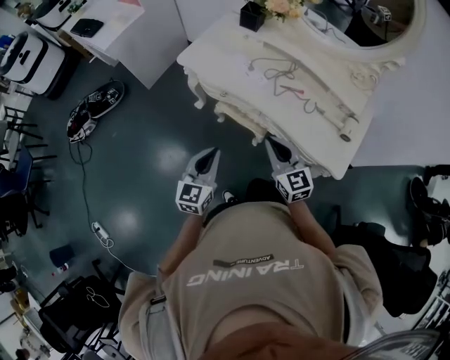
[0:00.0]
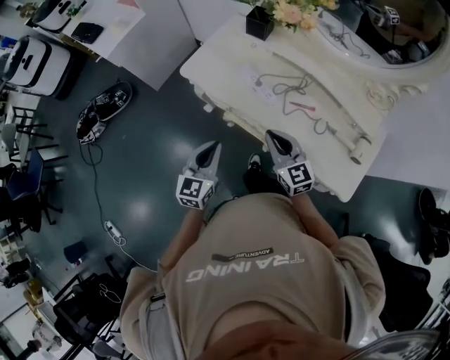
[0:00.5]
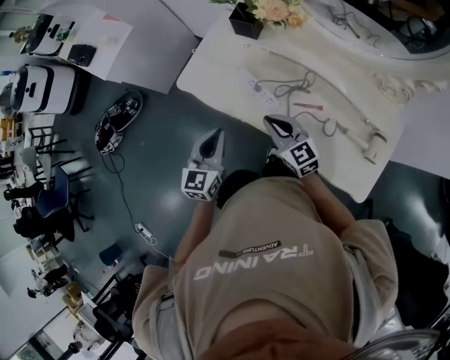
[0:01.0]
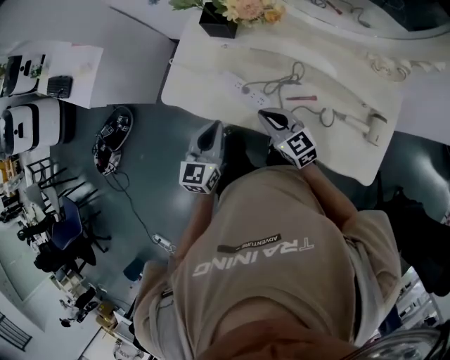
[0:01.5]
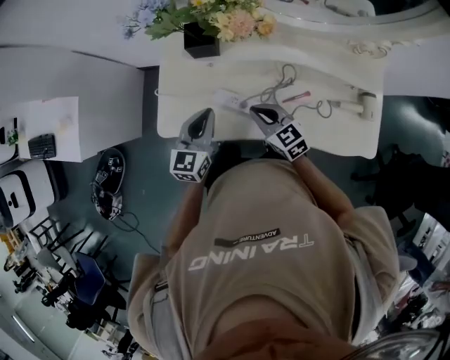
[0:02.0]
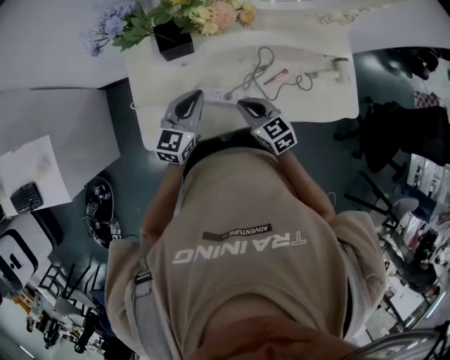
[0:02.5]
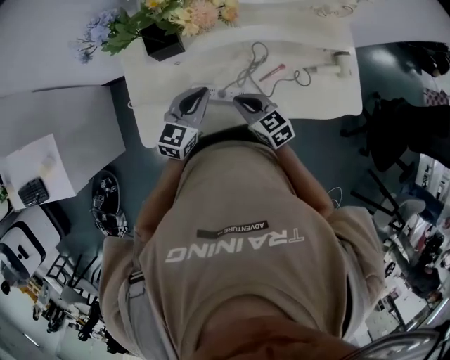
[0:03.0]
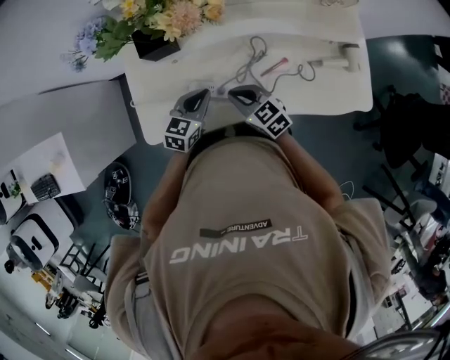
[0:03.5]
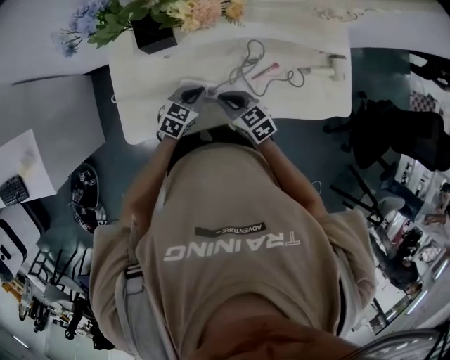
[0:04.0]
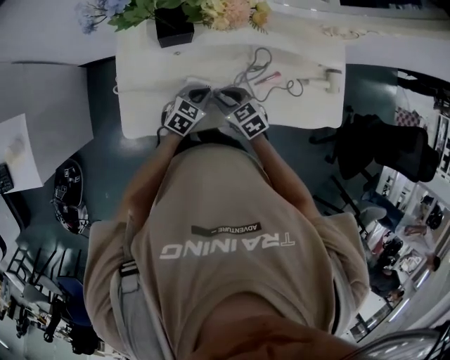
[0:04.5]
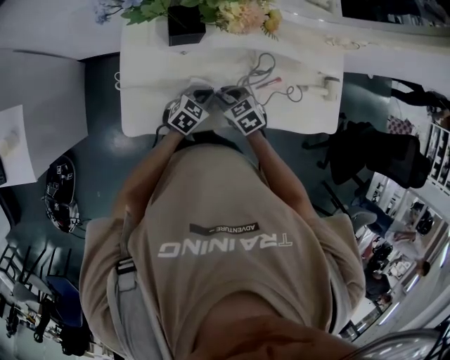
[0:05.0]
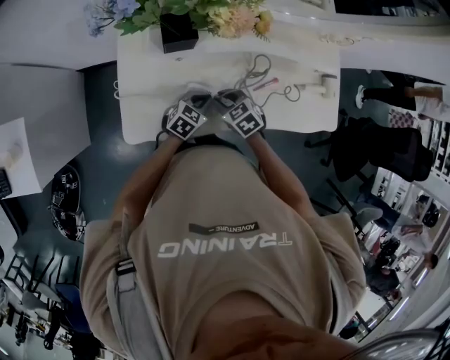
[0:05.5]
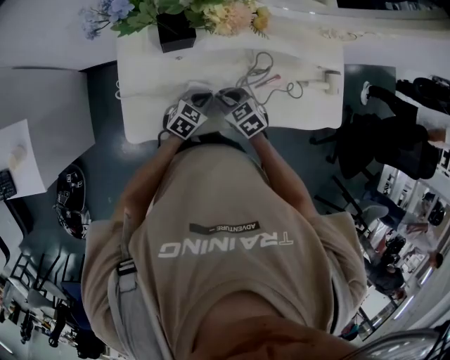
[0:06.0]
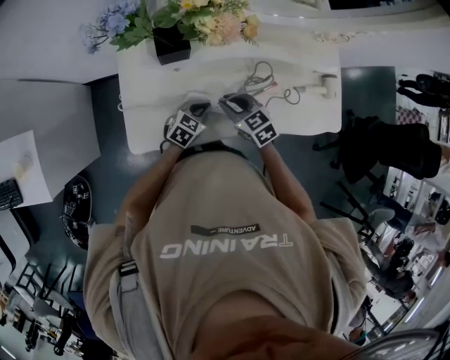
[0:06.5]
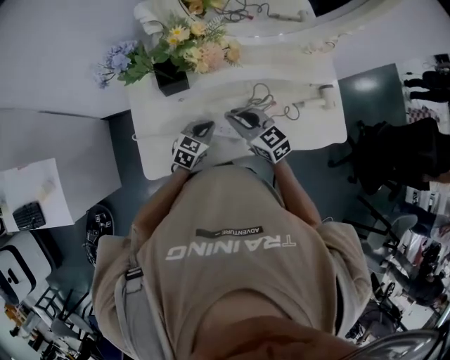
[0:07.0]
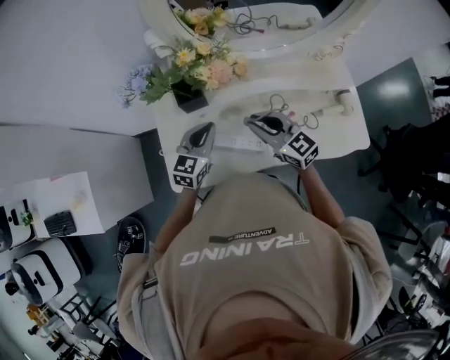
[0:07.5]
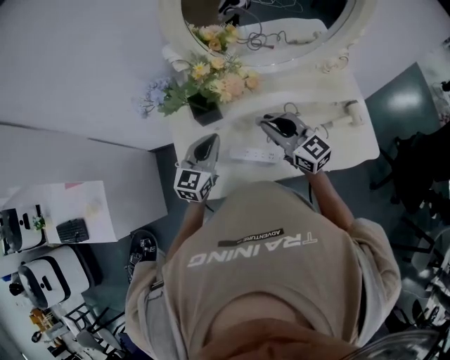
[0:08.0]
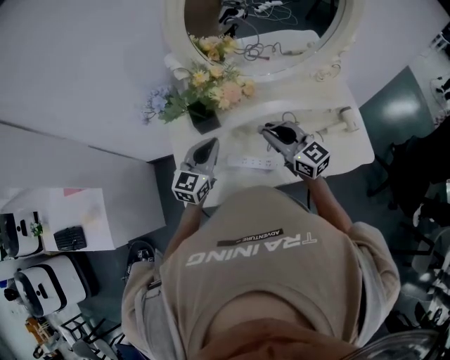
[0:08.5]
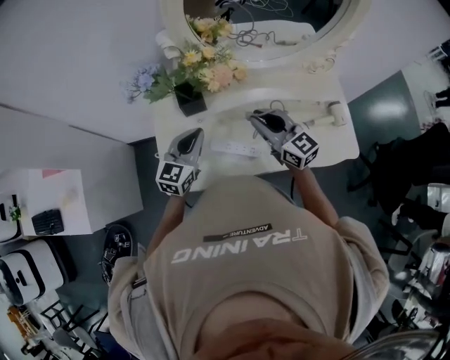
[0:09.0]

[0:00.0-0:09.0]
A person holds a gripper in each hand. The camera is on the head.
0:00.0 to 0:02.0: Both grippers travel together forward, some 40 cm. The left gripper swivels approximately 30 degrees. Meanwhile the right gripper turns by about 20 degrees.
0:02.0 to 0:04.5: The right gripper moves downward, about 10 cm, rotates about 20 degrees, and opens. Meanwhile the left gripper moves downward, about 15 cm, and rotates roughly 40 degrees.
0:04.5 to 0:07.0: The right gripper moves upward, about 15 cm, and turns by approximately 20 degrees. The left gripper travels upward by roughly 5 cm.
0:07.0 to 0:09.0: The left gripper moves upward and to the left, some 20 cm, and rotates roughly 30 degrees. The right gripper moves upward, about 10 cm, and rotates about 20 degrees.

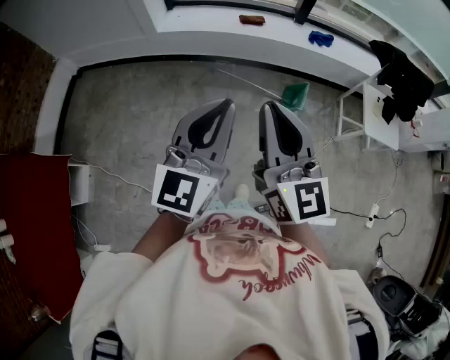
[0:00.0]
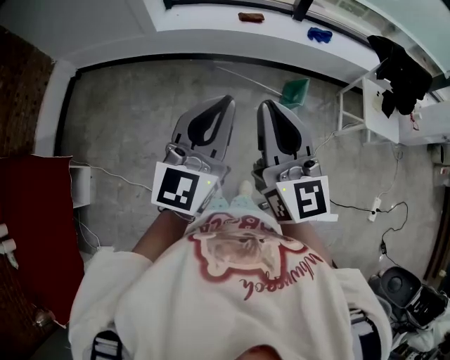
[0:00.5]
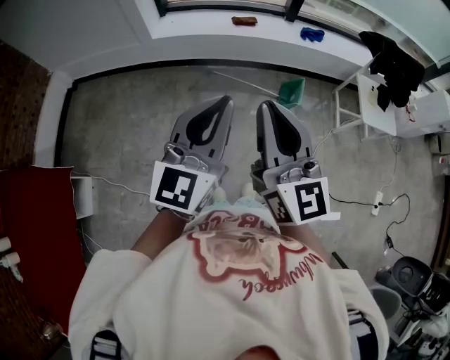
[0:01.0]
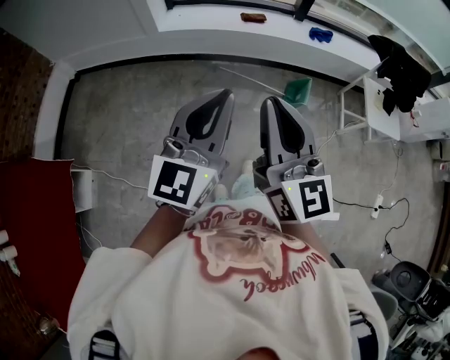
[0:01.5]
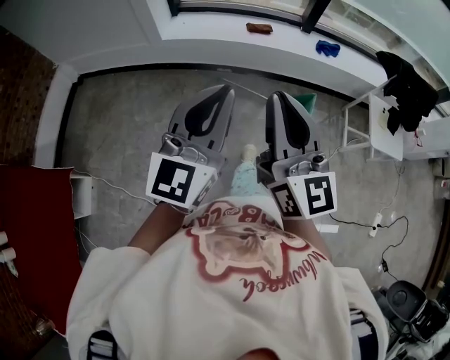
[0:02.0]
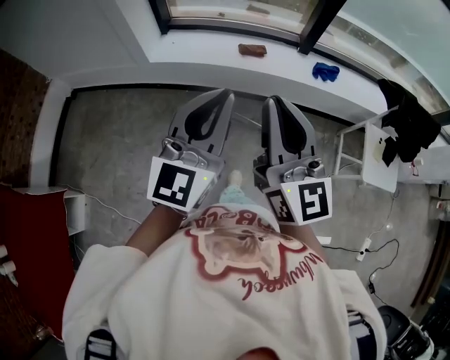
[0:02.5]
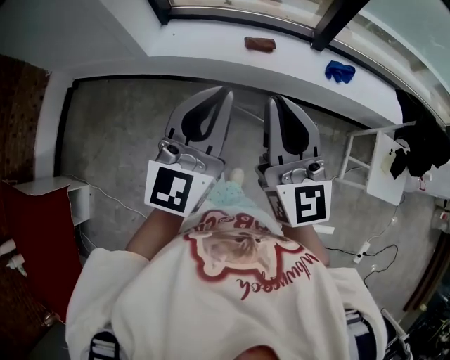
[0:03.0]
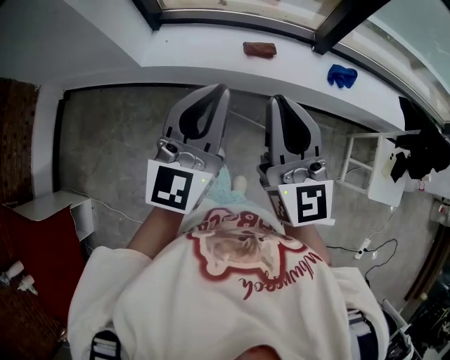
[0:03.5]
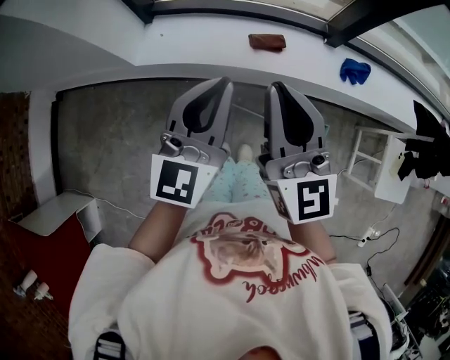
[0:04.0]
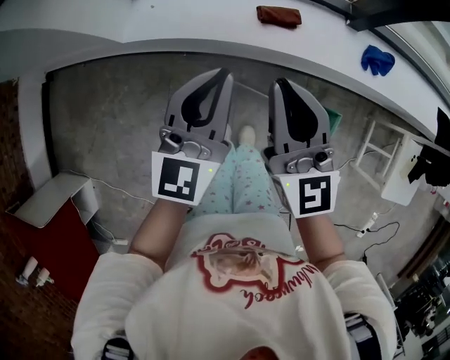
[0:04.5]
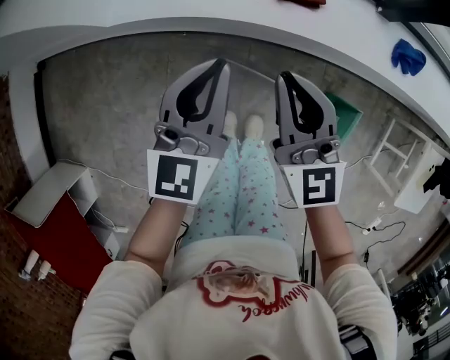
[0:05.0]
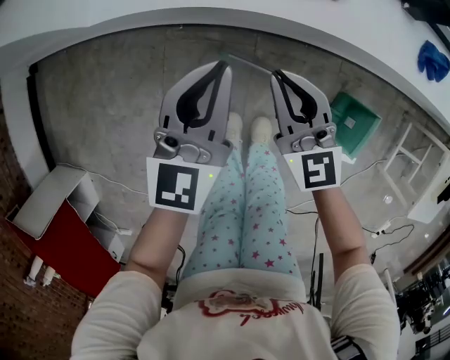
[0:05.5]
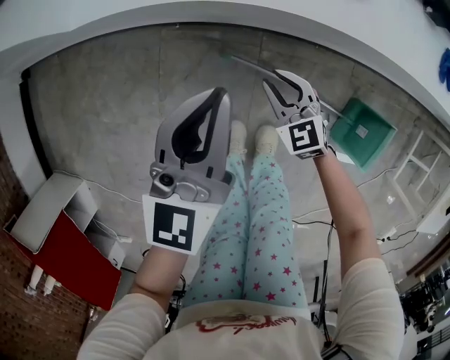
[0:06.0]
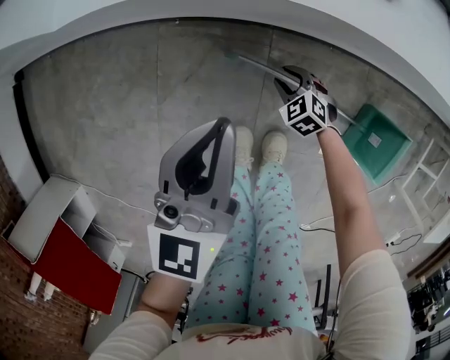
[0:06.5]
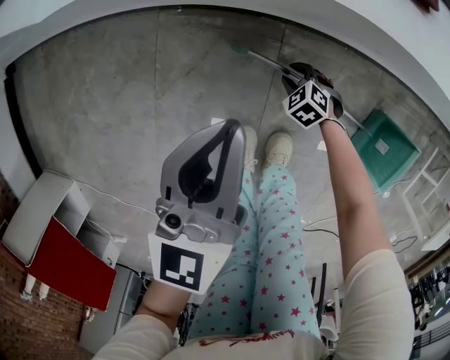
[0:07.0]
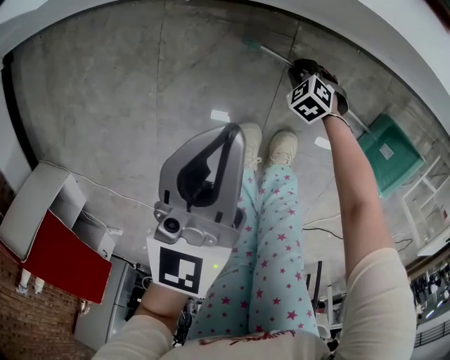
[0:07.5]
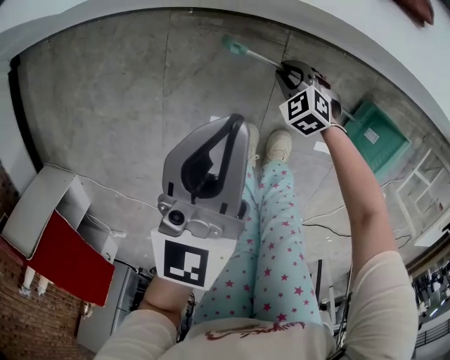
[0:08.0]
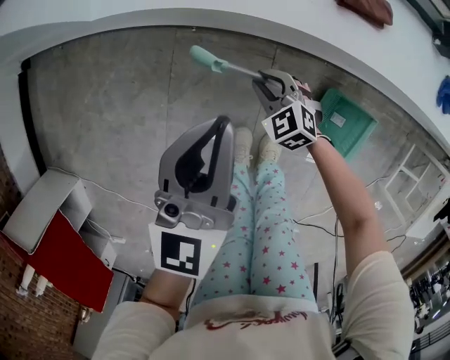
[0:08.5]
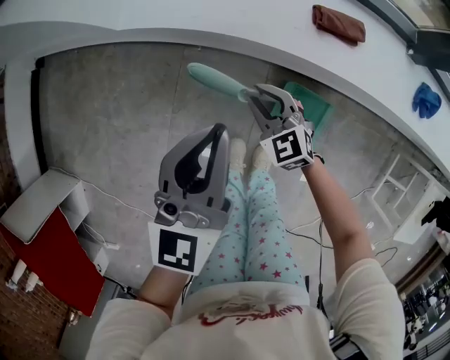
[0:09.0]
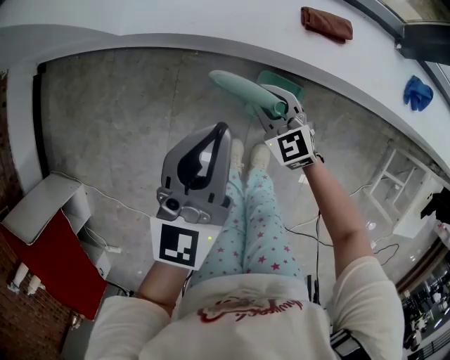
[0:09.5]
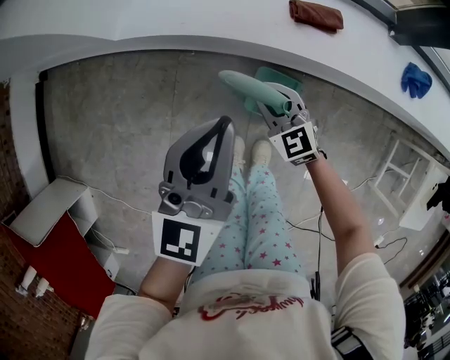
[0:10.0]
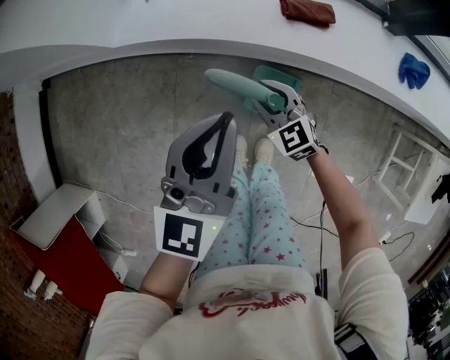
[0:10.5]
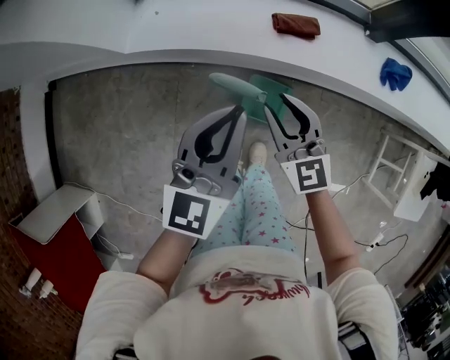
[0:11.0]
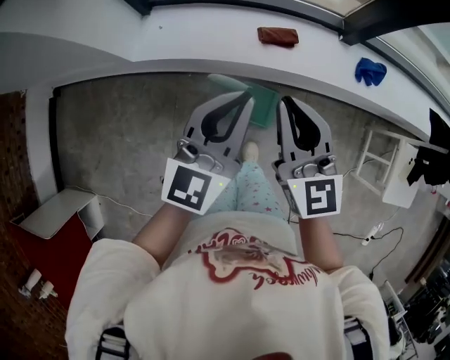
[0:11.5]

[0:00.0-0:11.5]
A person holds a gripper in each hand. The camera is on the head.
0:00.0 to 0:02.0: The grippers both shift to the left and forward by roughly 10 cm.
0:02.0 to 0:04.0: Both grippers are carried forward, roughly 50 cm.
0:04.0 to 0:06.0: The right gripper is displaced downward by about 70 cm, and points its fingers about 40 degrees further downward; the left gripper is displaced downward by approximately 40 cm.
0:06.0 to 0:07.5: The right gripper shifts some 30 cm downward, and tips its fingers downward by about 40 degrees. Meanwhile the left gripper shifts roughly 15 cm downward and to the left.
0:07.5 to 0:09.5: The right gripper is displaced upward by roughly 50 cm, and tips its fingers upward by about 40 degrees. Meanwhile the left gripper is displaced upward by roughly 30 cm.
0:09.5 to 0:11.5: The left gripper travels upward and to the right by some 20 cm. Meanwhile the right gripper travels upward by some 40 cm, and turns by some 40 degrees.

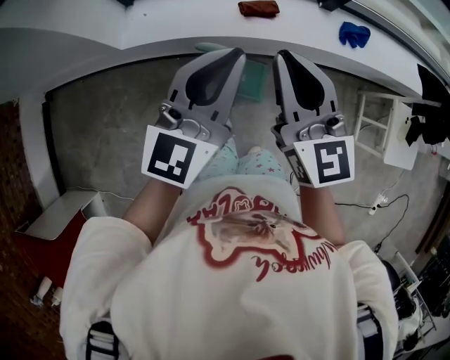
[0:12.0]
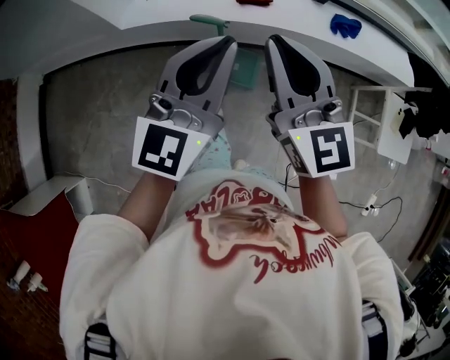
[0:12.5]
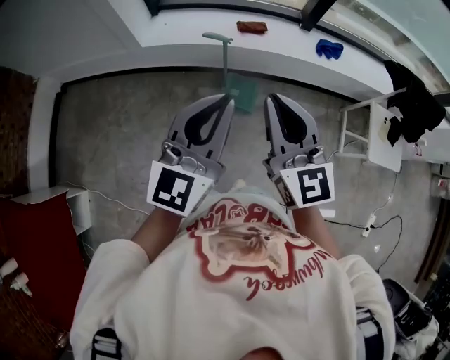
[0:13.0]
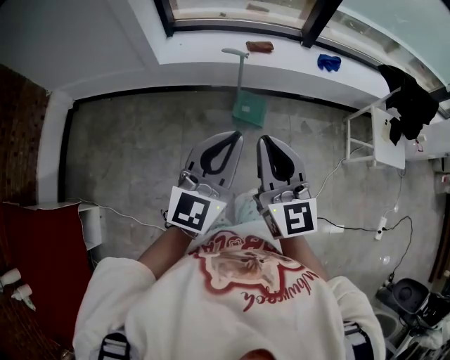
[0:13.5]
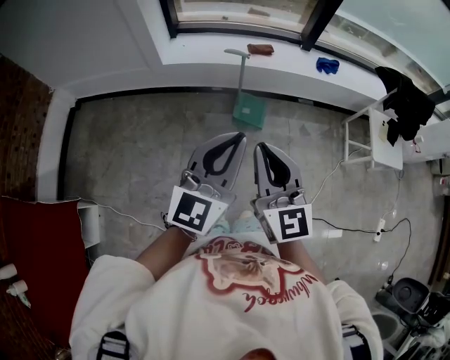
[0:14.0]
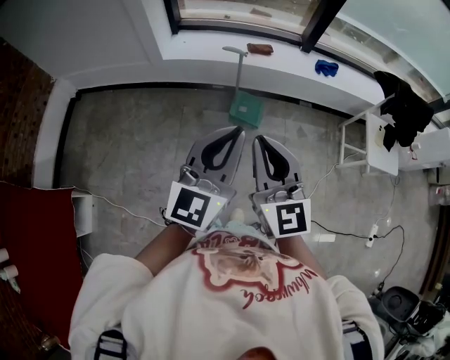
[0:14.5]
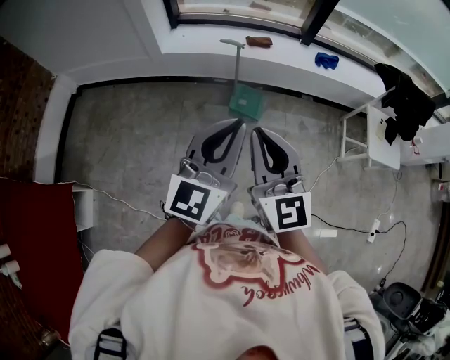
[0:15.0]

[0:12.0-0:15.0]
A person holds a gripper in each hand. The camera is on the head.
0:12.0 to 0:13.5: The pair of grippers is taken backward, about 50 cm.
0:13.5 to 0:15.0: Both grippers travel together backward, roughly 5 cm.

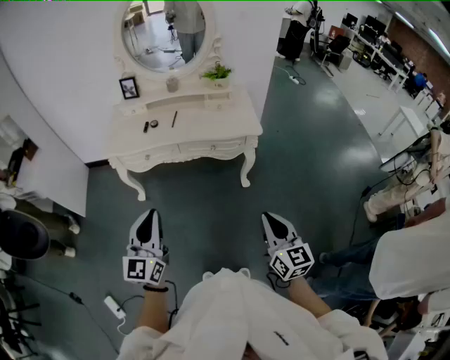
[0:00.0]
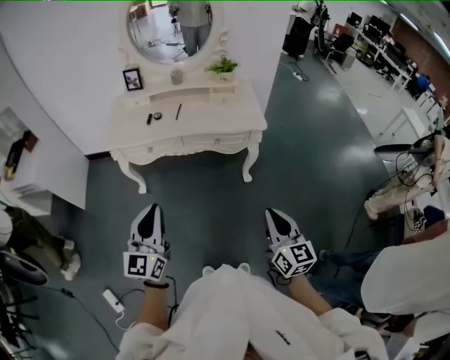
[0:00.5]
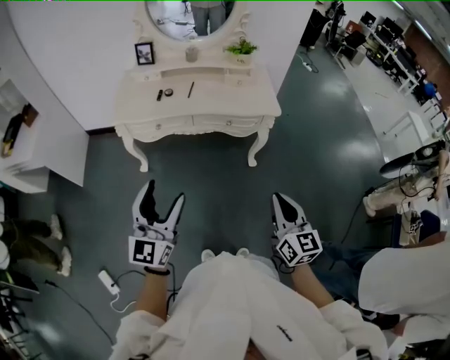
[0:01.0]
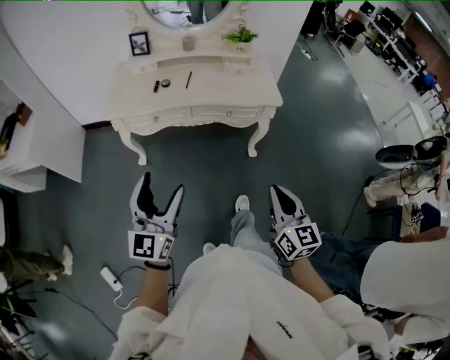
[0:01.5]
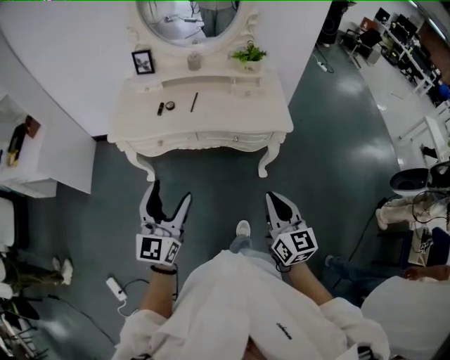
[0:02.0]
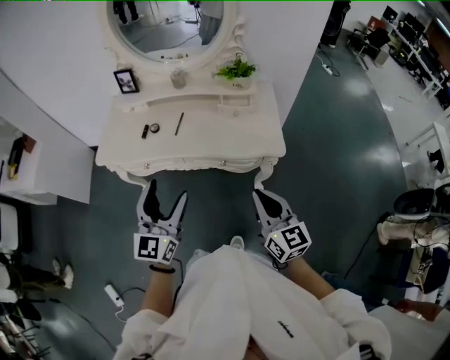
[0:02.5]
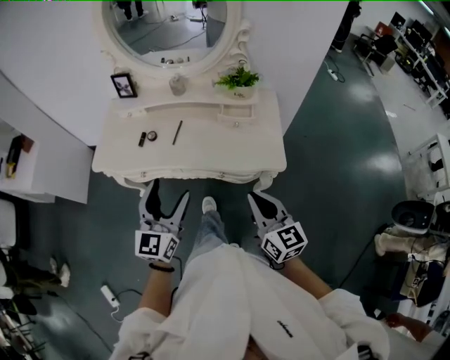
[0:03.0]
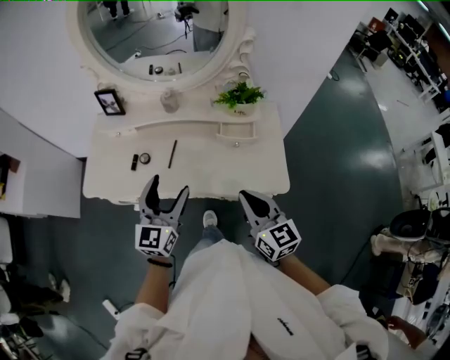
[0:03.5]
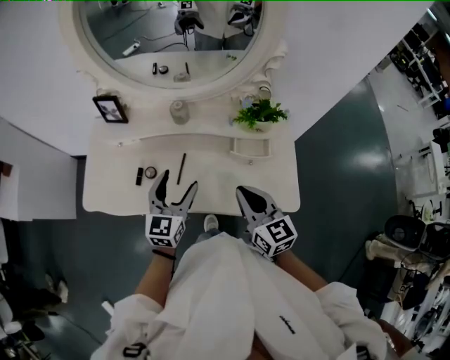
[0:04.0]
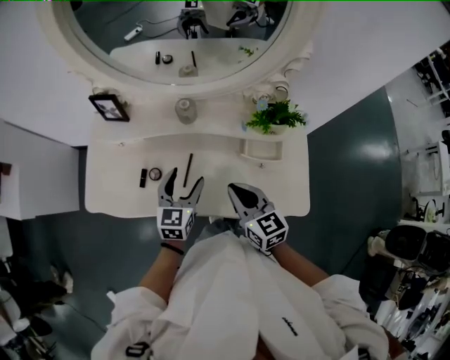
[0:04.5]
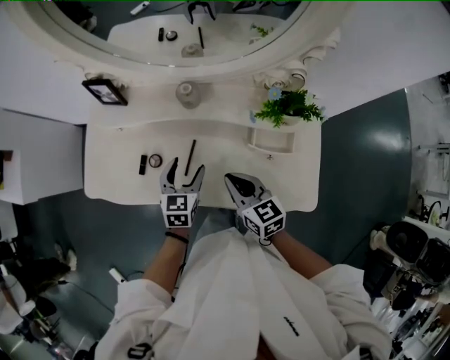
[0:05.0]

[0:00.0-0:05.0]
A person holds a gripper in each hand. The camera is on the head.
0:00.0 to 0:02.5: Both grippers move forward, approximately 30 cm. The left gripper opens its fingers.
0:02.5 to 0:05.0: The right gripper travels forward by some 40 cm, and turns by approximately 30 degrees. Meanwhile the left gripper shifts about 50 cm forward and downward, and points its fingers some 40 degrees further downward.
